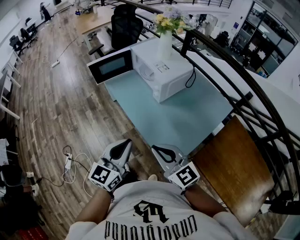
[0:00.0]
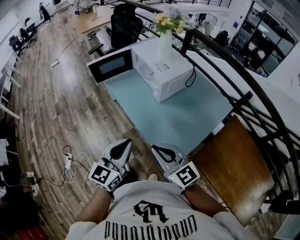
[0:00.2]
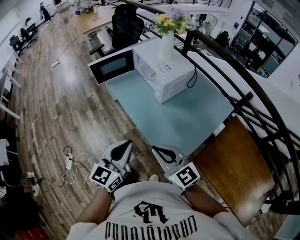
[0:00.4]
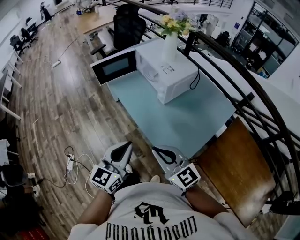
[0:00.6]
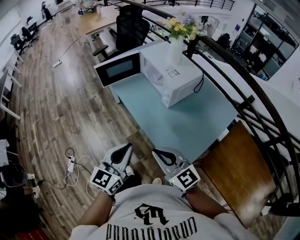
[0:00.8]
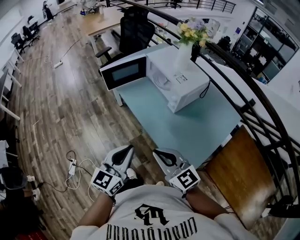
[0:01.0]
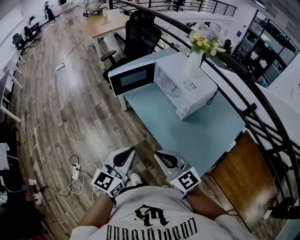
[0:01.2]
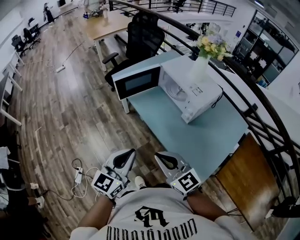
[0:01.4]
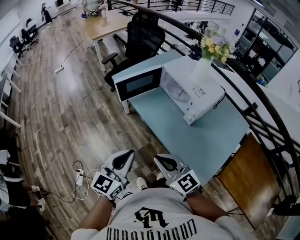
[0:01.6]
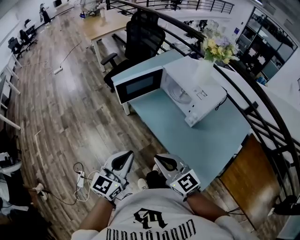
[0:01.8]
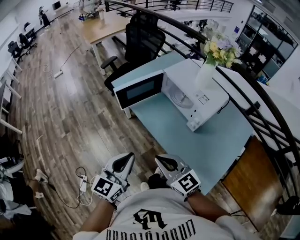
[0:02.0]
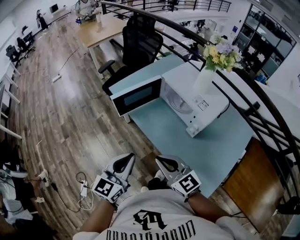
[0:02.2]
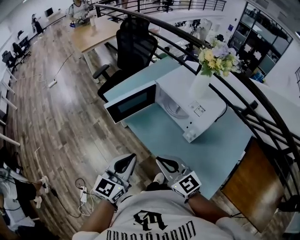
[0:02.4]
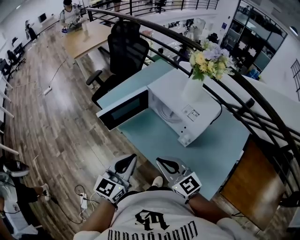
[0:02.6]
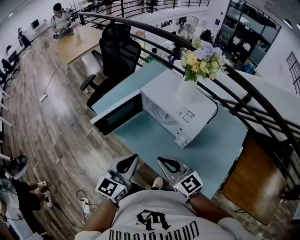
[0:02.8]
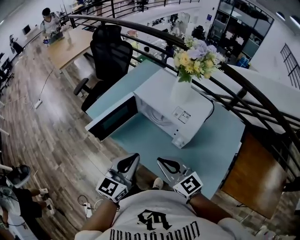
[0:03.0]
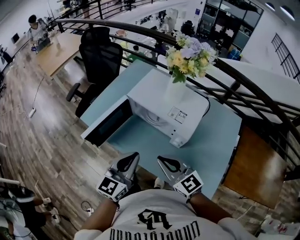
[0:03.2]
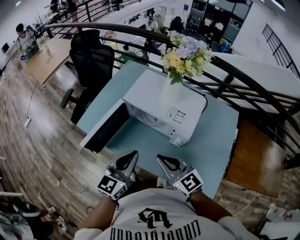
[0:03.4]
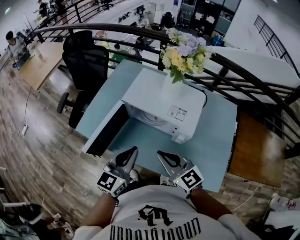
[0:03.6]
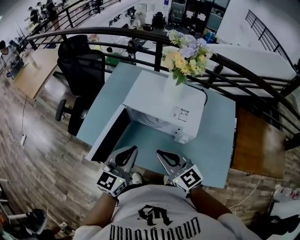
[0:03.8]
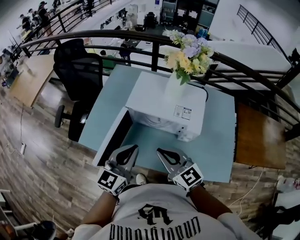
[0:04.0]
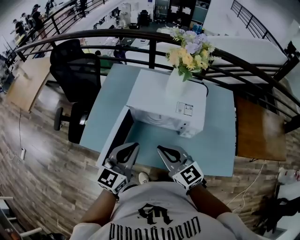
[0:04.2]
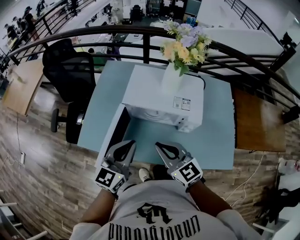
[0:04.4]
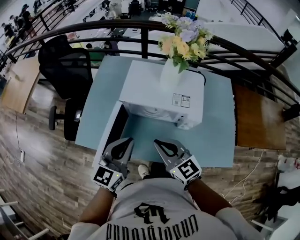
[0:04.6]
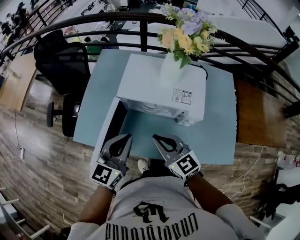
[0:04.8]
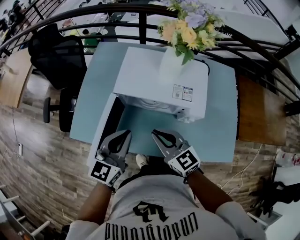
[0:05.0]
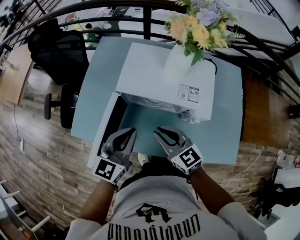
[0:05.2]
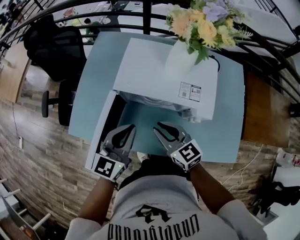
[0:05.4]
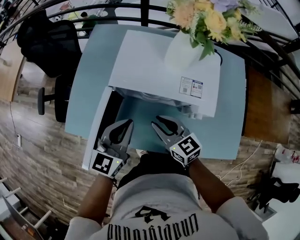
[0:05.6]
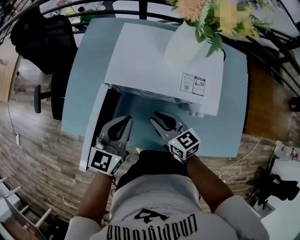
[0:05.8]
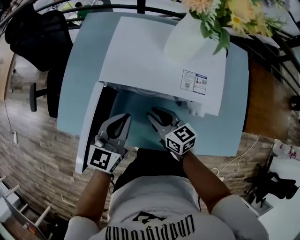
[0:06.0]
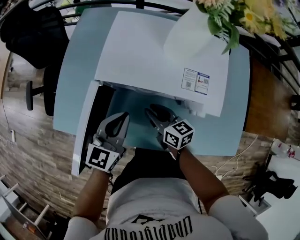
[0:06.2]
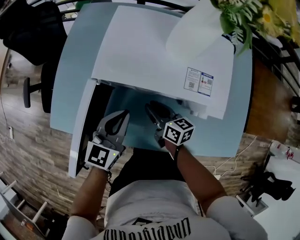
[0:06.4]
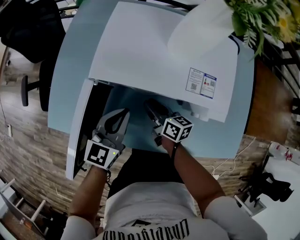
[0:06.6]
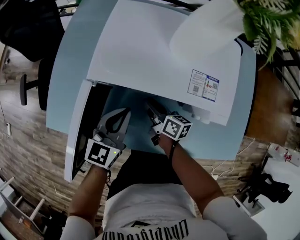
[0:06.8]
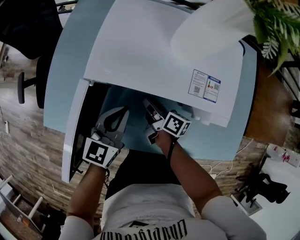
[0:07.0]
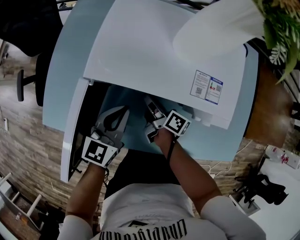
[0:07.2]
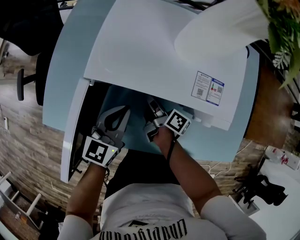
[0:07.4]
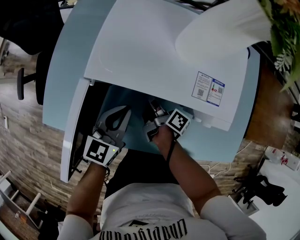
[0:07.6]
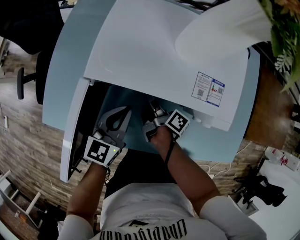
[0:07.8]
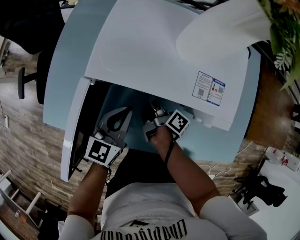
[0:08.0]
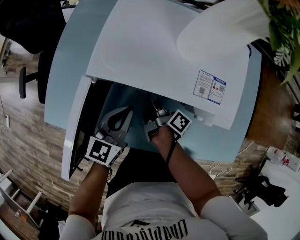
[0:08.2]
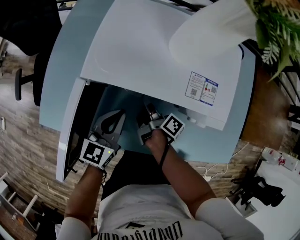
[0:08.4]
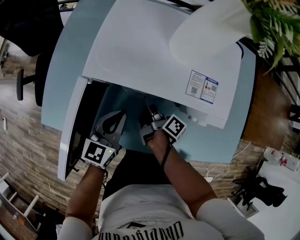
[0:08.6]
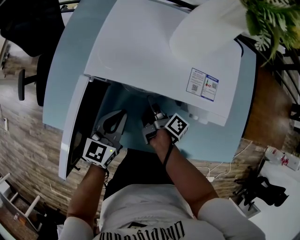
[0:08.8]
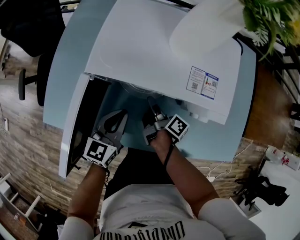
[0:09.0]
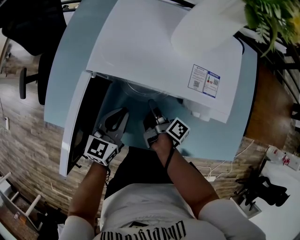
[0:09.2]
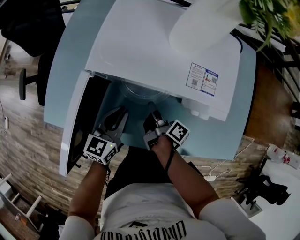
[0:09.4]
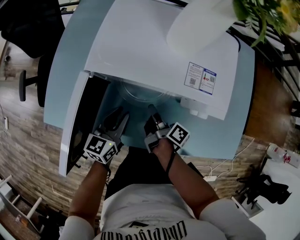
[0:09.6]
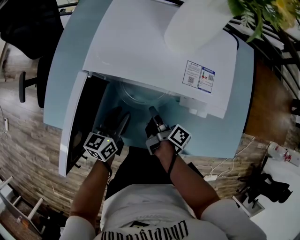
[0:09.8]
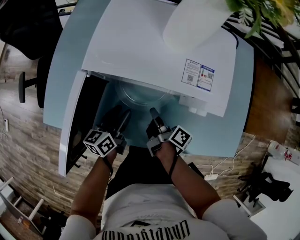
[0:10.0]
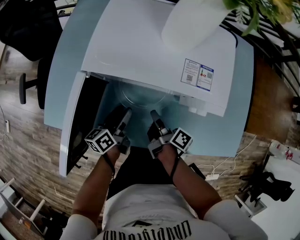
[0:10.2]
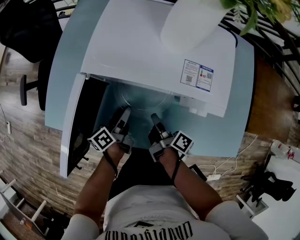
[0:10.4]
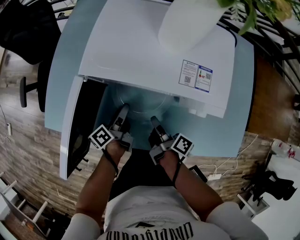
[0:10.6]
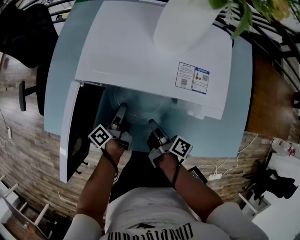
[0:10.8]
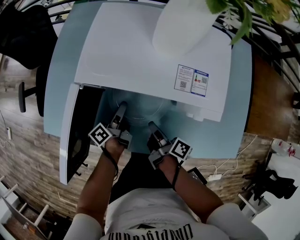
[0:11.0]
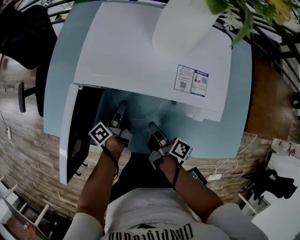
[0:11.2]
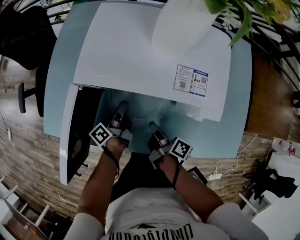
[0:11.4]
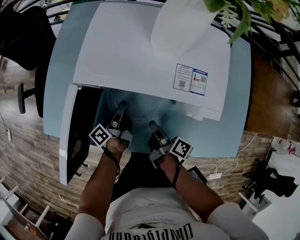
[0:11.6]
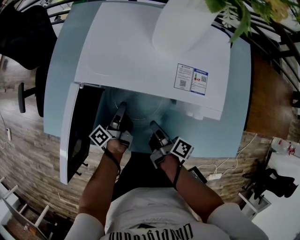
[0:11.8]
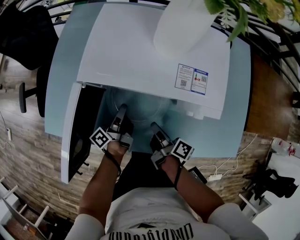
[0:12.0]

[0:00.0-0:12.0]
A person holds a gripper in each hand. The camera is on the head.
0:00.0 to 0:01.6: Both grippers move to the left and forward, some 25 cm.
0:01.6 to 0:03.0: Both grippers move forward and to the right, some 25 cm.
0:03.0 to 0:04.4: The left gripper moves some 20 cm, and turns by roughly 30 degrees. Meanwhile the right gripper moves roughly 15 cm, and rotates roughly 30 degrees.
0:04.4 to 0:06.0: Both grippers travel together downward and forward, approximately 20 cm. The right gripper changes its angle by about 30 degrees, and opens up.
0:06.0 to 0:07.6: The left gripper travels downward by about 10 cm. Meanwhile the right gripper is displaced downward and forward by approximately 15 cm, and twists roughly 60 degrees clockwise, seen from behind.
0:07.6 to 0:09.0: The grippers move only a little.
0:09.0 to 0:10.4: The left gripper travels downward by about 10 cm, rotates around the line of its fingers by about 60 degrees, counterclockwise from behind, and opens its fingers. Meanwhile the right gripper travels backward by approximately 10 cm.
0:10.4 to 0:12.0: The left gripper rotates roughly 20 degrees, and closes.

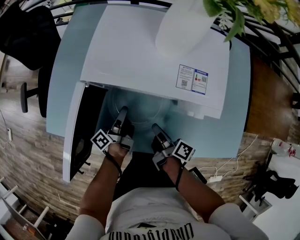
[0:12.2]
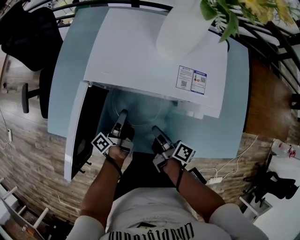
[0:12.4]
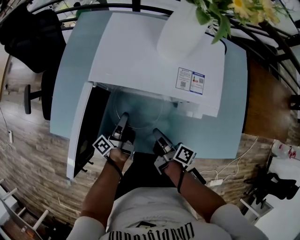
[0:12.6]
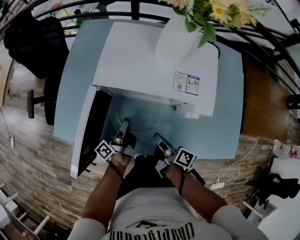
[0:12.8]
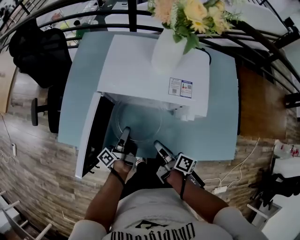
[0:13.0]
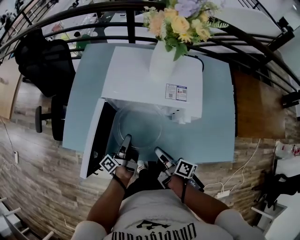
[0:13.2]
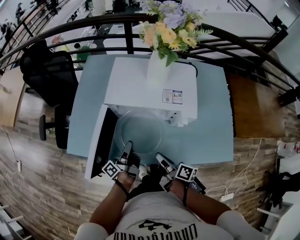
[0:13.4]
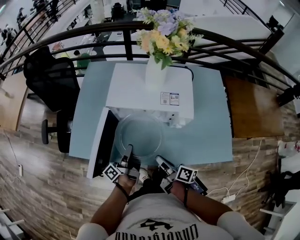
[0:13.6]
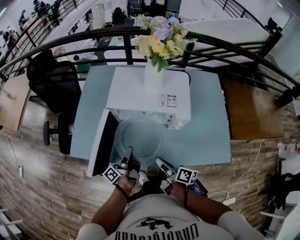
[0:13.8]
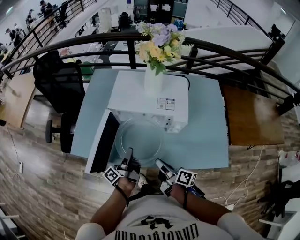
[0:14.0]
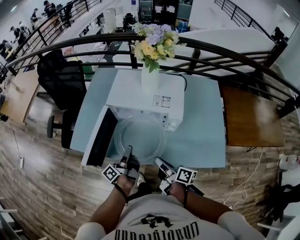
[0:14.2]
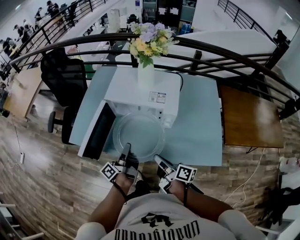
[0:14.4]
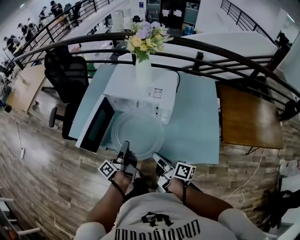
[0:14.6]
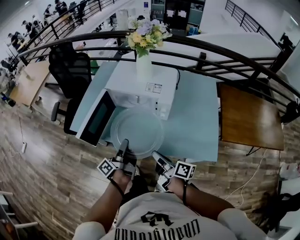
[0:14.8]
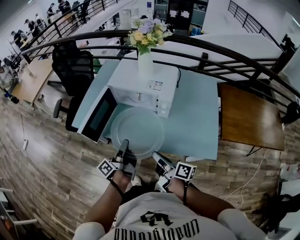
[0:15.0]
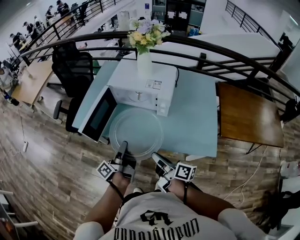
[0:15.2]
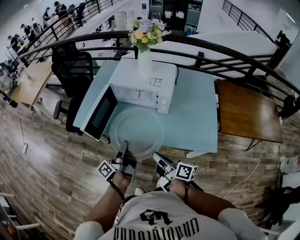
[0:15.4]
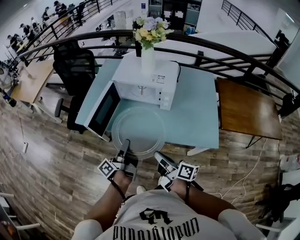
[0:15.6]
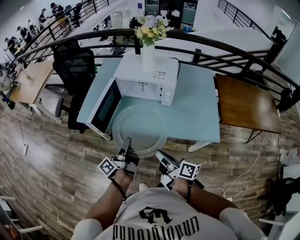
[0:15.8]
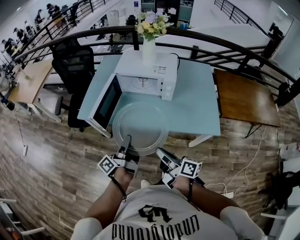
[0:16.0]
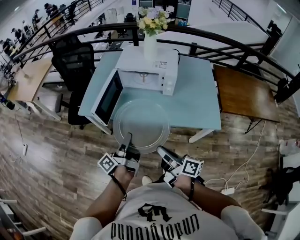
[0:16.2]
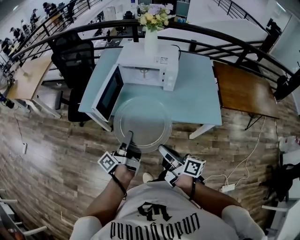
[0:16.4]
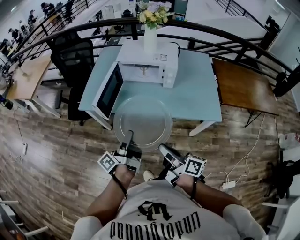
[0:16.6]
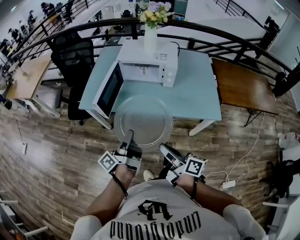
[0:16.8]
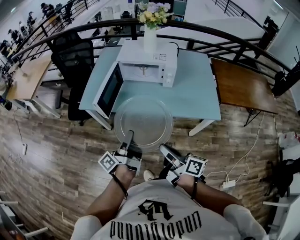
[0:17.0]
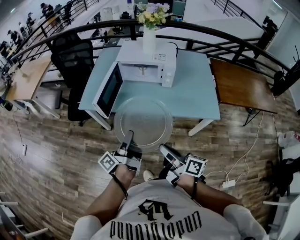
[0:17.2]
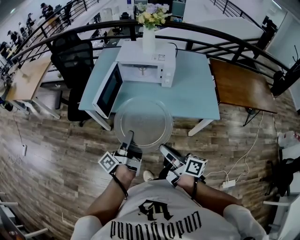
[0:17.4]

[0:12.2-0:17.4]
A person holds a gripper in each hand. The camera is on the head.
0:12.2 to 0:14.0: The grippers both shift upward and backward by about 20 cm.
0:14.0 to 0:15.6: The two grippers go roughly 20 cm backward and upward.
0:15.6 to 0:17.4: The grippers both shift backward and to the left by about 15 cm.

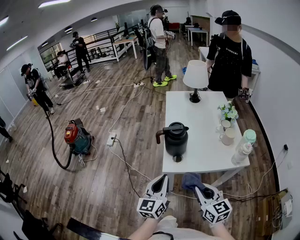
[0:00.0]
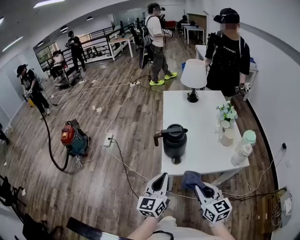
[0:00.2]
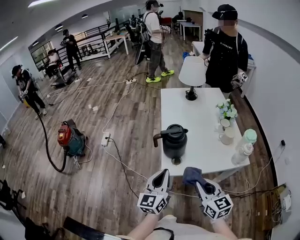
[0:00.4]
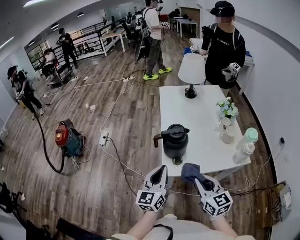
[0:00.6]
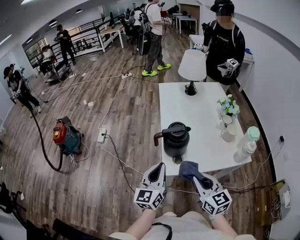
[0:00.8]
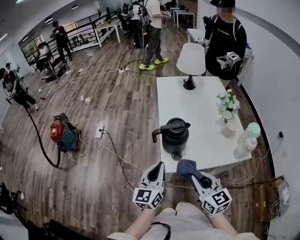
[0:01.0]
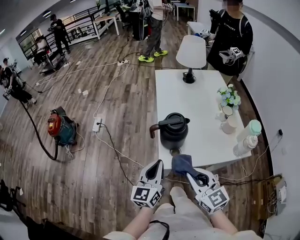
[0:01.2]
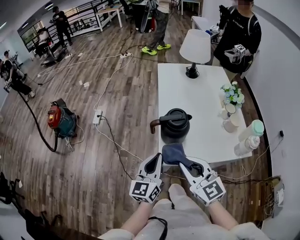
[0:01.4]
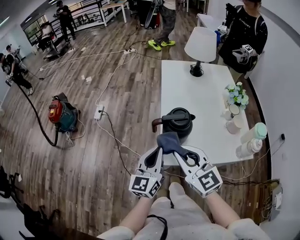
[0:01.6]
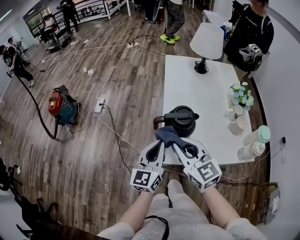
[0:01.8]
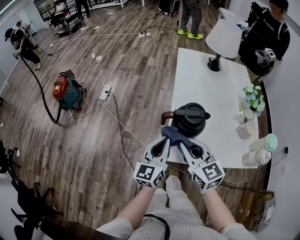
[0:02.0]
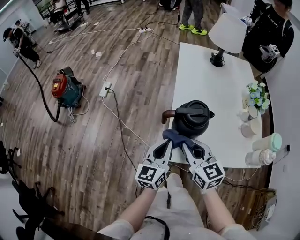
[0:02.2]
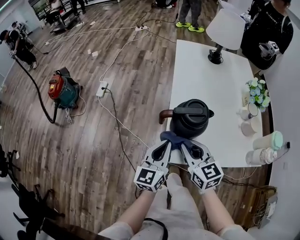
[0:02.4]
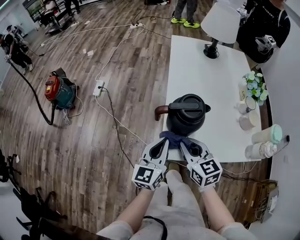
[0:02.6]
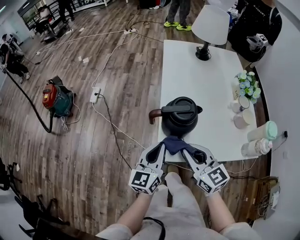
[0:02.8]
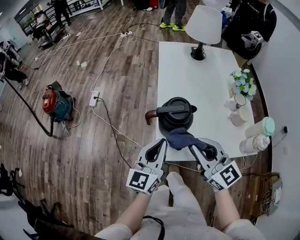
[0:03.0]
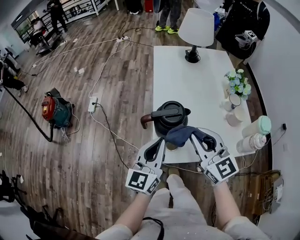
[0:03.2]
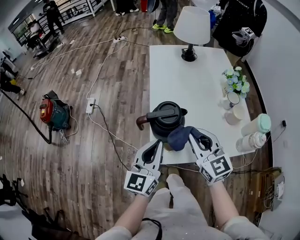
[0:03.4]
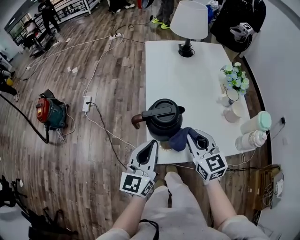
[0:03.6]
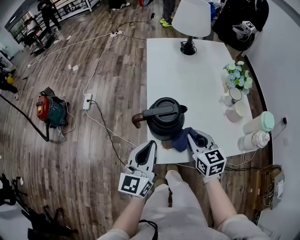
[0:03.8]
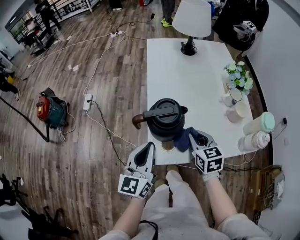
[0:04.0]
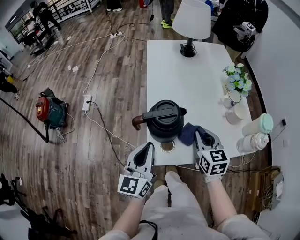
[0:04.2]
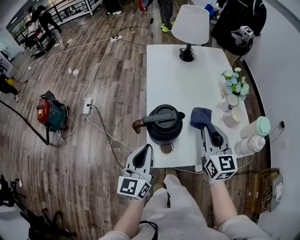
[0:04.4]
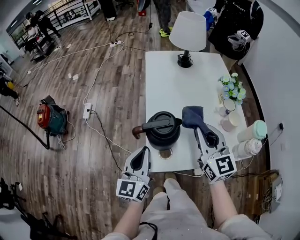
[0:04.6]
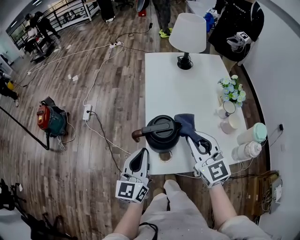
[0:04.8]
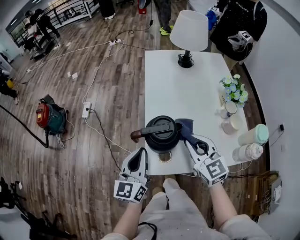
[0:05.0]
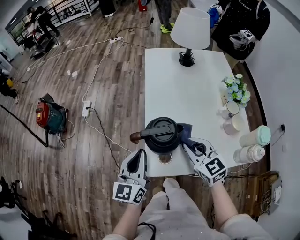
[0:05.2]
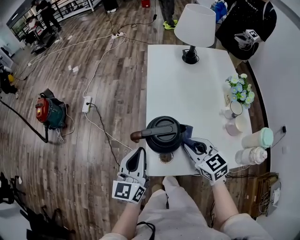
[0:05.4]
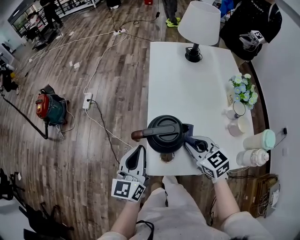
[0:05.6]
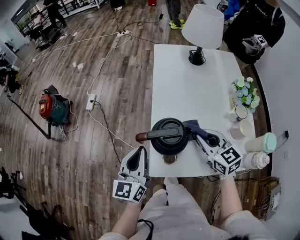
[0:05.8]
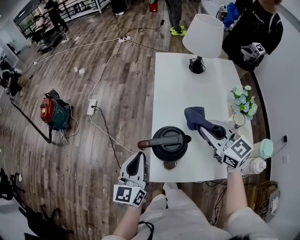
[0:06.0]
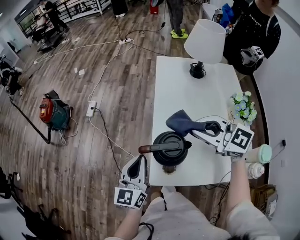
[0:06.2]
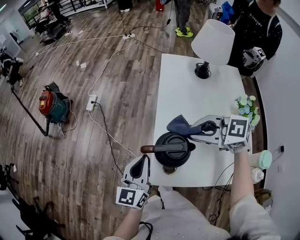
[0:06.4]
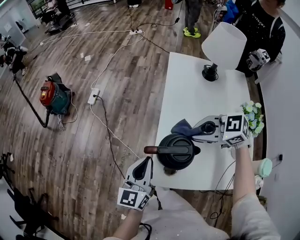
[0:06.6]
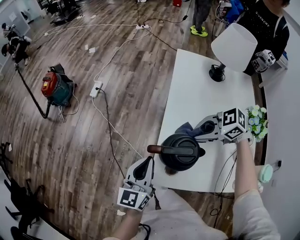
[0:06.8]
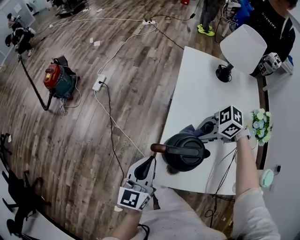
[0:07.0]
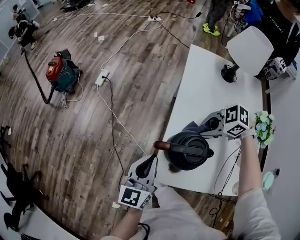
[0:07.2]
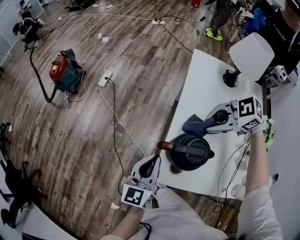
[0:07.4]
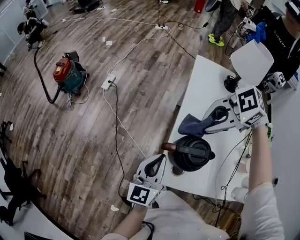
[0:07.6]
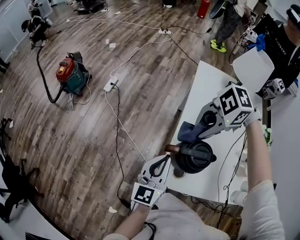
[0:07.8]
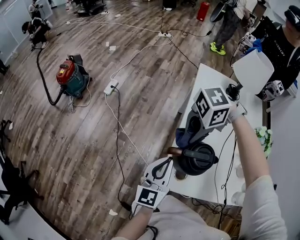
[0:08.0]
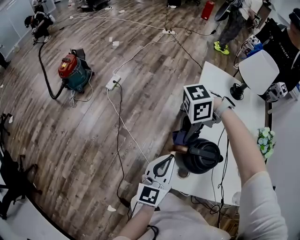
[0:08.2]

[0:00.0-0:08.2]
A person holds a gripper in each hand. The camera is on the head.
0:00.0 to 0:01.6: The right gripper goes roughly 20 cm forward and to the left, and turns by about 20 degrees; the left gripper goes about 15 cm forward.
0:01.6 to 0:03.2: The left gripper reaches approximately 10 cm downward, then returns, while the right gripper is displaced to the right and forward by roughly 10 cm, and goes downward and returns, approximately 15 cm each way.
0:03.2 to 0:05.0: The left gripper changes place by some 5 cm. Meanwhile the right gripper swings up and down, roughly 15 cm each way, with 2 reversals.
0:05.0 to 0:06.6: The right gripper swings up and down, some 15 cm each way, with 2 reversals, and turns by roughly 60 degrees.
0:06.6 to 0:08.2: The right gripper goes up and down, approximately 15 cm each way, reversing 2 times, and changes its angle by roughly 70 degrees.
